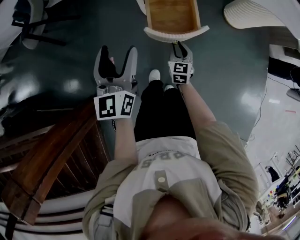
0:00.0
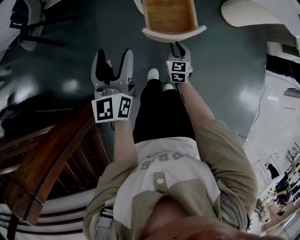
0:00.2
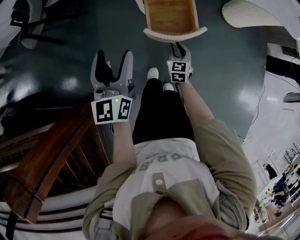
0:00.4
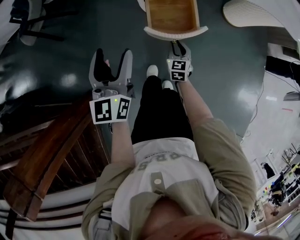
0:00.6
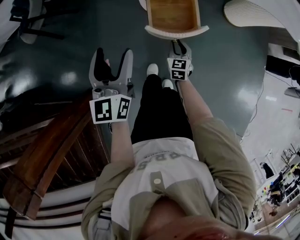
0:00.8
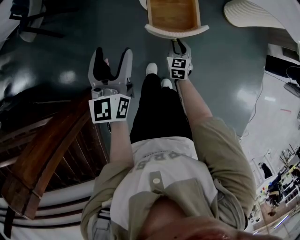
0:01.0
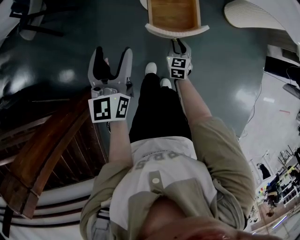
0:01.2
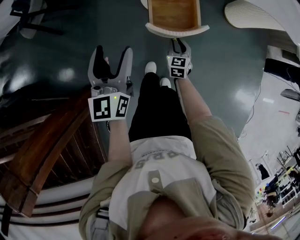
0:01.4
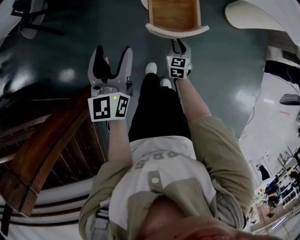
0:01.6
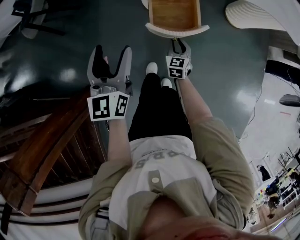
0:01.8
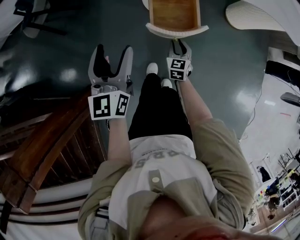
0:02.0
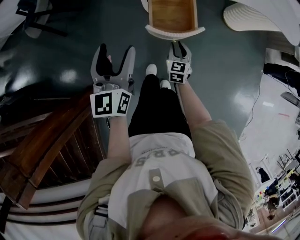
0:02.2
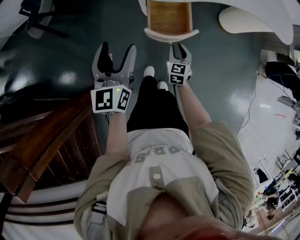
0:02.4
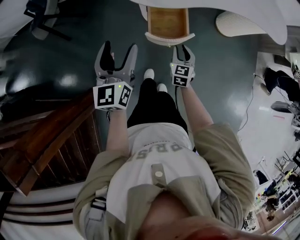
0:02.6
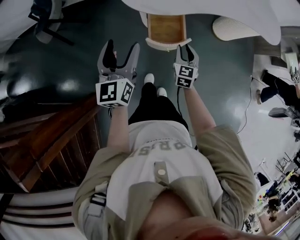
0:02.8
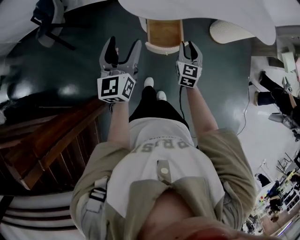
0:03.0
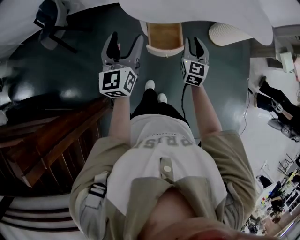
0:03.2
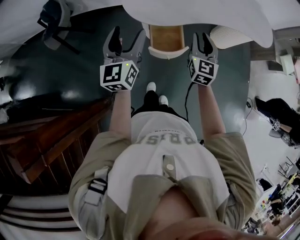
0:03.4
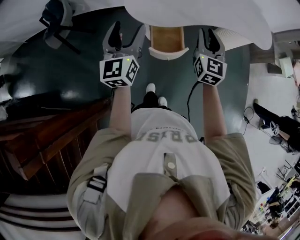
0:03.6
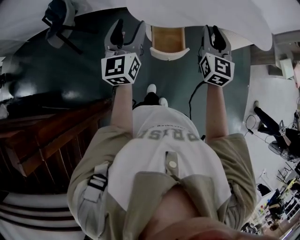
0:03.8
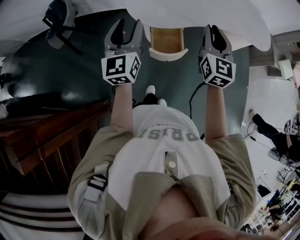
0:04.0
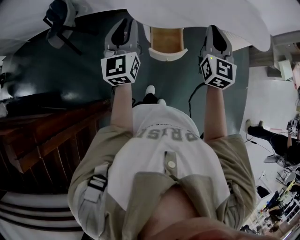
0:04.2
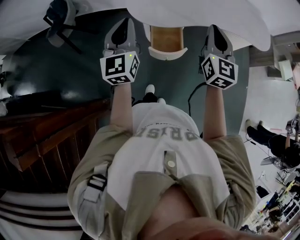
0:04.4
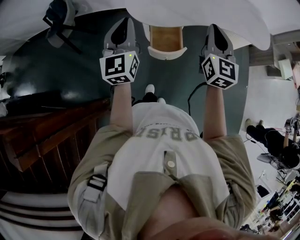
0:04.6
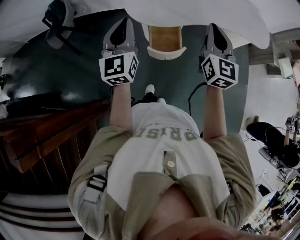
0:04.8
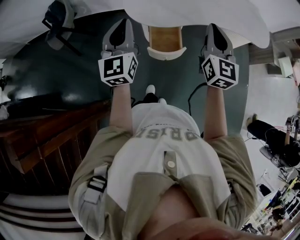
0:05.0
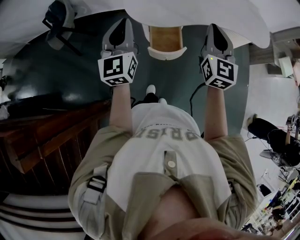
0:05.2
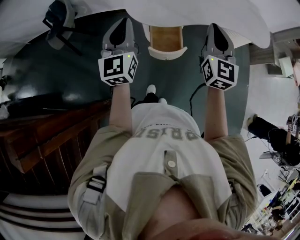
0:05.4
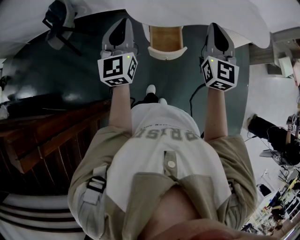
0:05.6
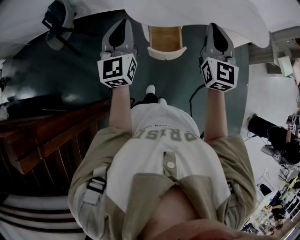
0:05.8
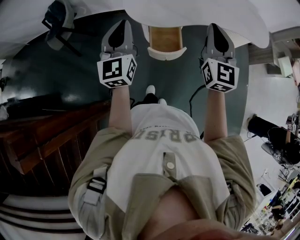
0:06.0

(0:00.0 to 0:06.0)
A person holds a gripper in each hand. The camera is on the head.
0:00.0 - 0:01.6: The grippers make only small movements.
0:01.6 - 0:03.0: The left gripper is displaced upward by some 15 cm, while the right gripper travels upward by about 30 cm.
0:03.0 - 0:04.4: The left gripper goes some 10 cm upward, and closes its fingers. Meanwhile the right gripper goes roughly 25 cm upward.
0:04.4 - 0:06.0: The grippers stay close to where they were, moving slightly.

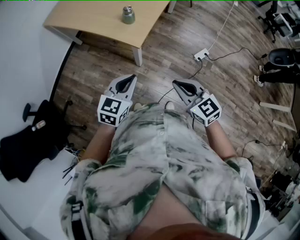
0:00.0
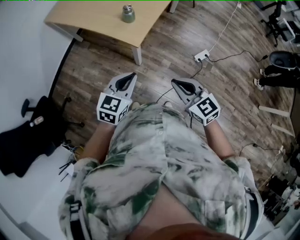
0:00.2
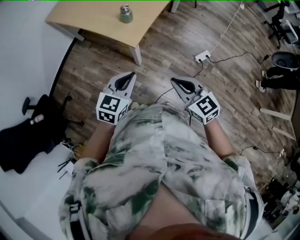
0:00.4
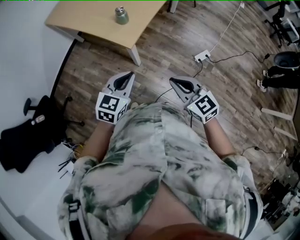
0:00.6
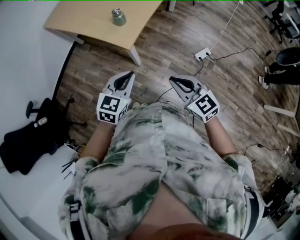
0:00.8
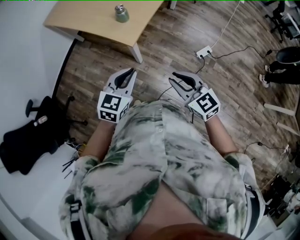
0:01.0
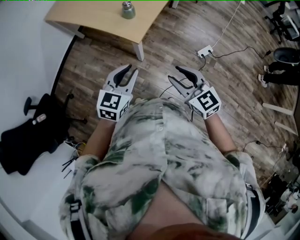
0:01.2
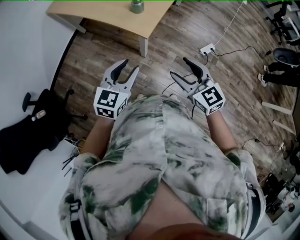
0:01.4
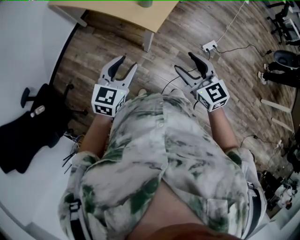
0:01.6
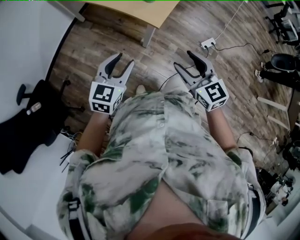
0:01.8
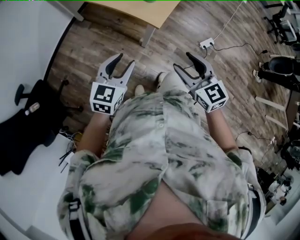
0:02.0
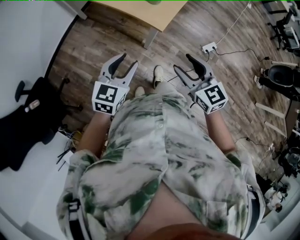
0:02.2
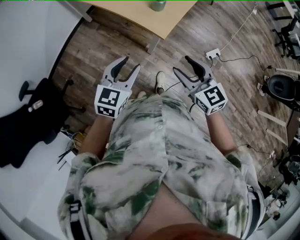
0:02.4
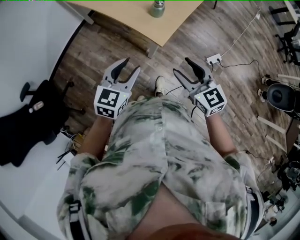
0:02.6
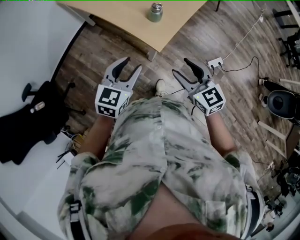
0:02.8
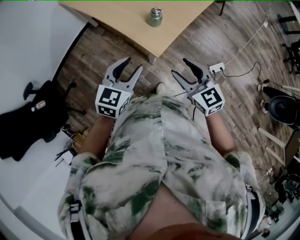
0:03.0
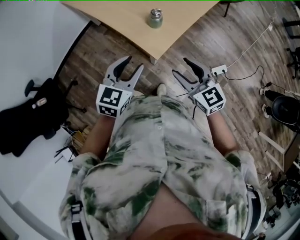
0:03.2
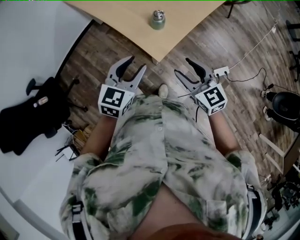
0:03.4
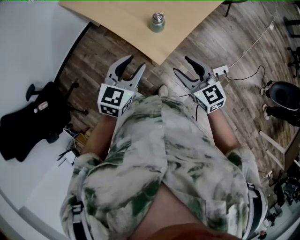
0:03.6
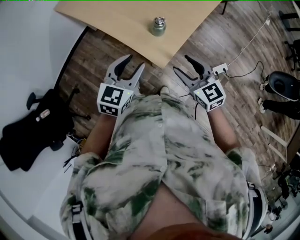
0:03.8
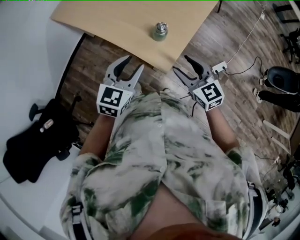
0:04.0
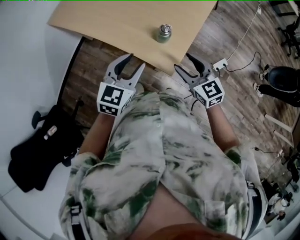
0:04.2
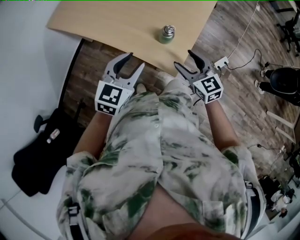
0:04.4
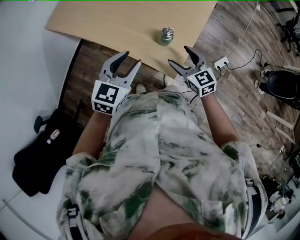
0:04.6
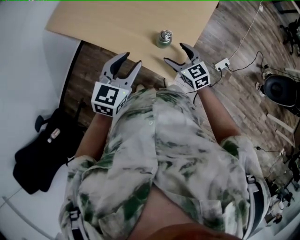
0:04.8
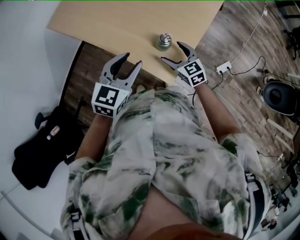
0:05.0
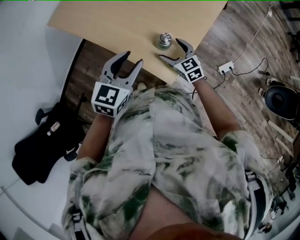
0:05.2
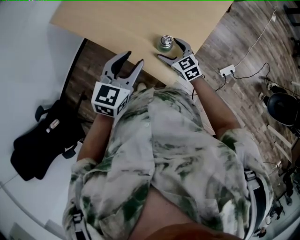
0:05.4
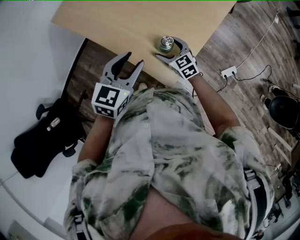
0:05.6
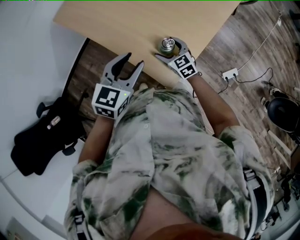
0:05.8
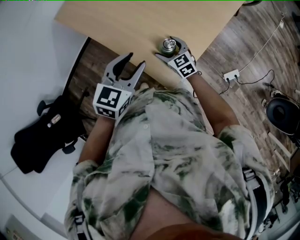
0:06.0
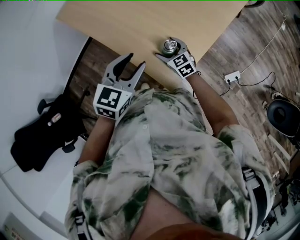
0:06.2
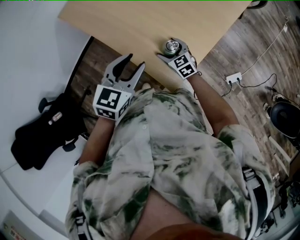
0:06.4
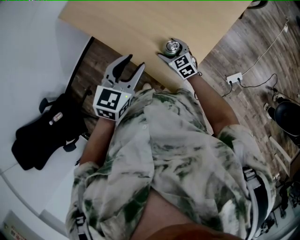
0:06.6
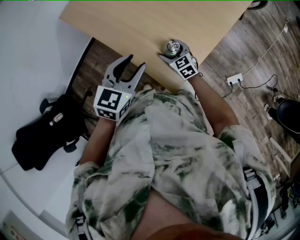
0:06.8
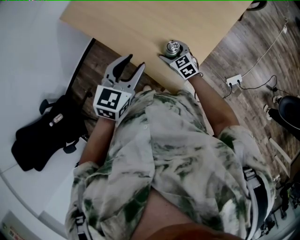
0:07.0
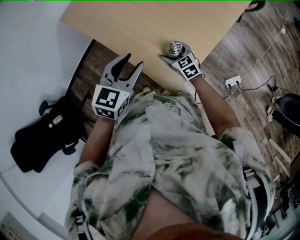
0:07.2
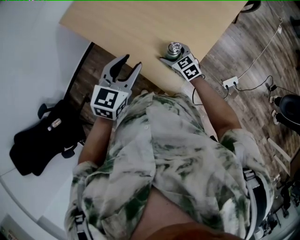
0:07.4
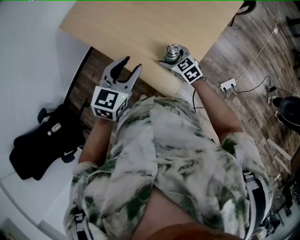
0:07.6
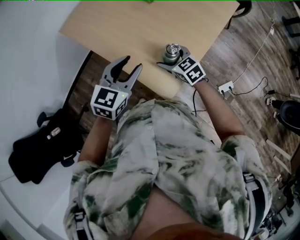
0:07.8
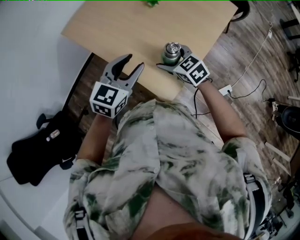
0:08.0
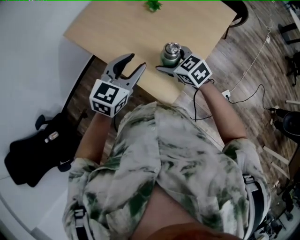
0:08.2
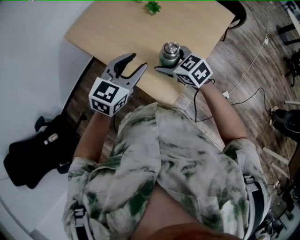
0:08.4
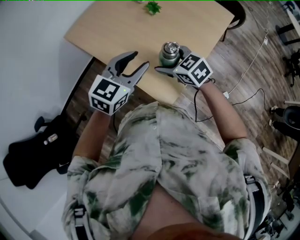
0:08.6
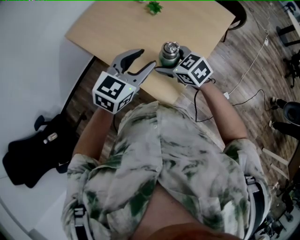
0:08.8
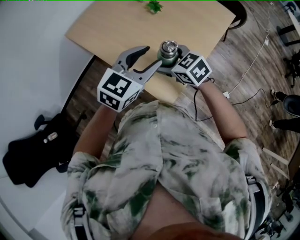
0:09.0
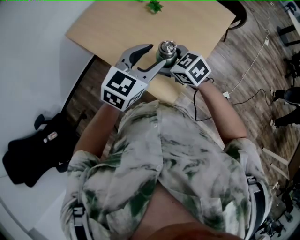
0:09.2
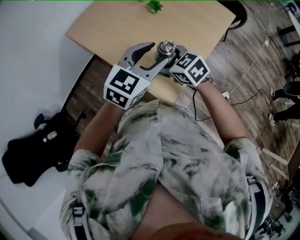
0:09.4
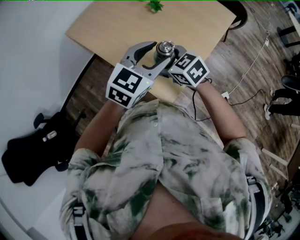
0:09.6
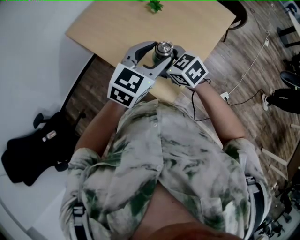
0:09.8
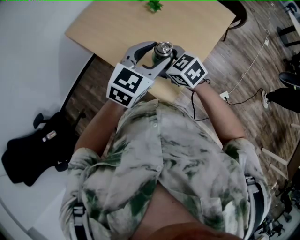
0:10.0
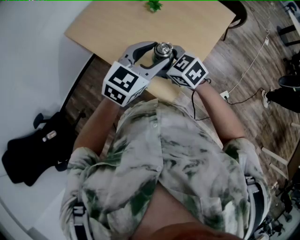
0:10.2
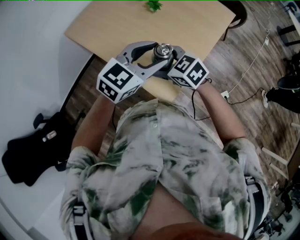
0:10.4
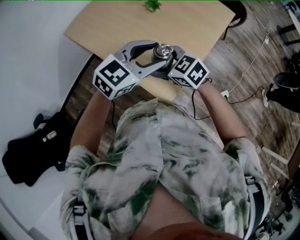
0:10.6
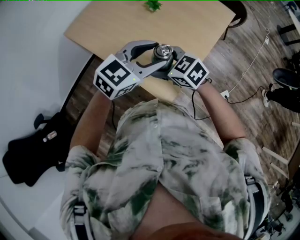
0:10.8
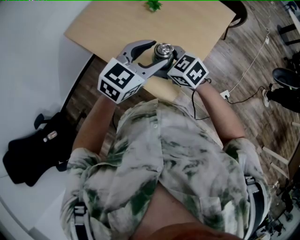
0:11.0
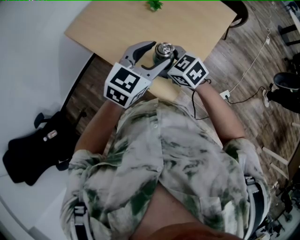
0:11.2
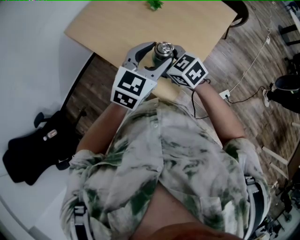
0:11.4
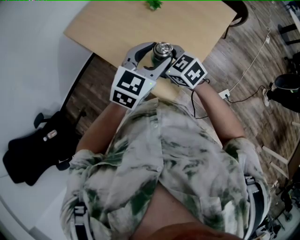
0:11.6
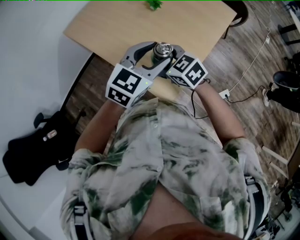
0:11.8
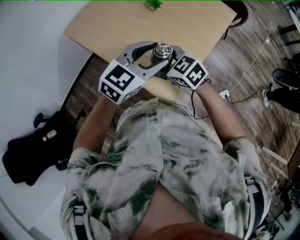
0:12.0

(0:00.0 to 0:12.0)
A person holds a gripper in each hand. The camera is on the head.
0:00.0 - 0:01.6: The right gripper is displaced to the left by roughly 5 cm, and opens its fingers. The left gripper heads to the left, covering some 10 cm, and opens.
0:01.6 - 0:03.0: The left gripper is displaced forward and to the right by about 15 cm, while the right gripper moves forward, about 15 cm.
0:03.0 - 0:04.4: The left gripper moves forward and to the left, about 20 cm; the right gripper goes roughly 15 cm forward.
0:04.4 - 0:06.0: The right gripper heads downward and forward, covering roughly 20 cm, while the left gripper is displaced forward by roughly 5 cm.
0:06.0 - 0:07.6: The right gripper moves upward, some 5 cm.
0:07.6 - 0:09.0: The right gripper goes about 15 cm upward. Meanwhile the left gripper is displaced upward by some 10 cm.
0:09.0 - 0:12.0: There are only small adjustments of the grippers.

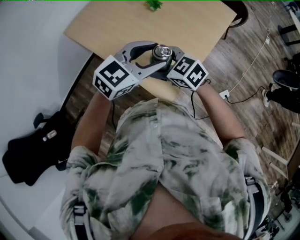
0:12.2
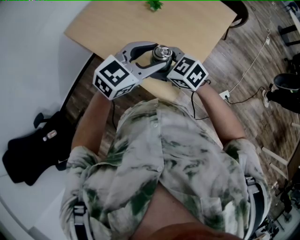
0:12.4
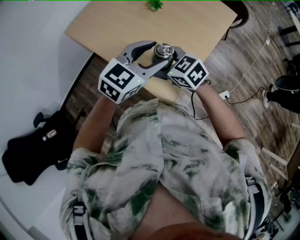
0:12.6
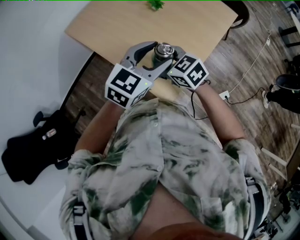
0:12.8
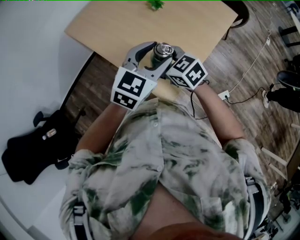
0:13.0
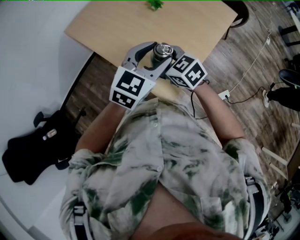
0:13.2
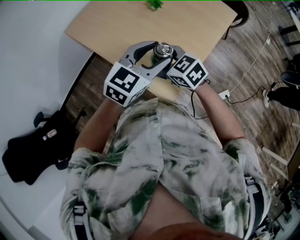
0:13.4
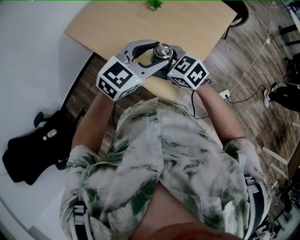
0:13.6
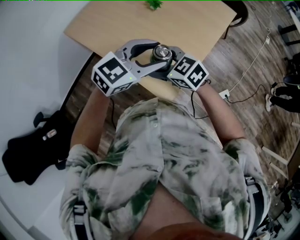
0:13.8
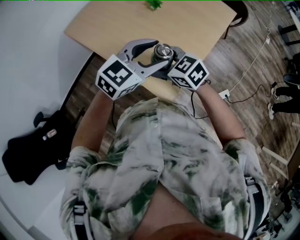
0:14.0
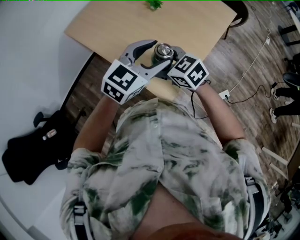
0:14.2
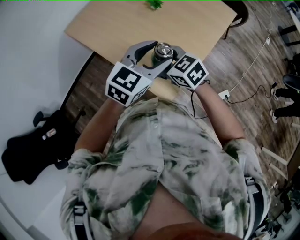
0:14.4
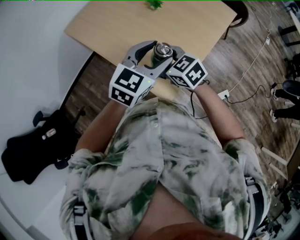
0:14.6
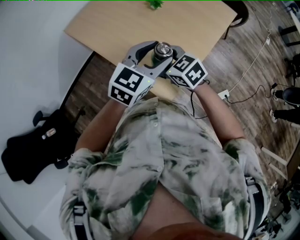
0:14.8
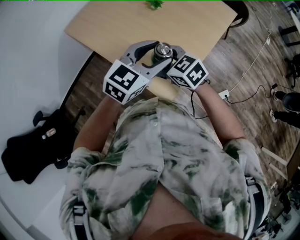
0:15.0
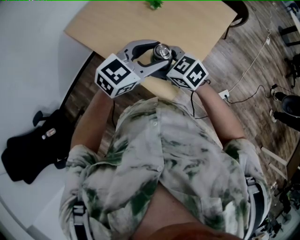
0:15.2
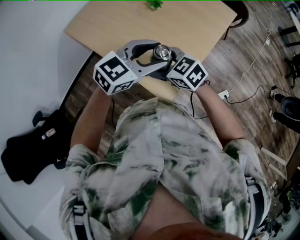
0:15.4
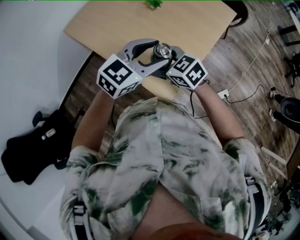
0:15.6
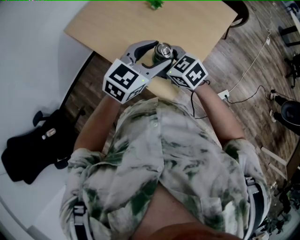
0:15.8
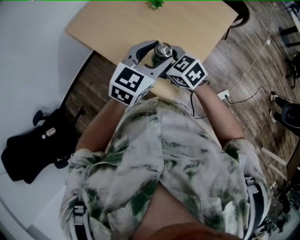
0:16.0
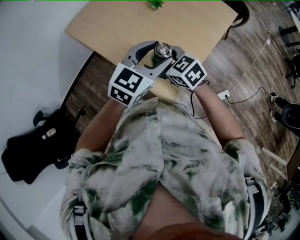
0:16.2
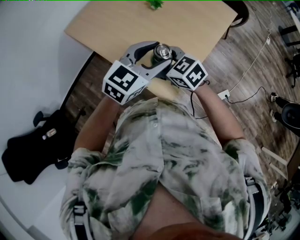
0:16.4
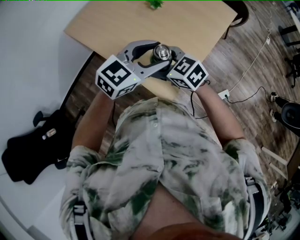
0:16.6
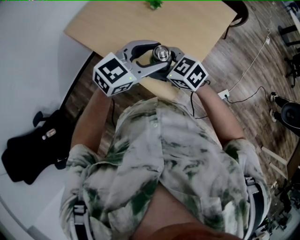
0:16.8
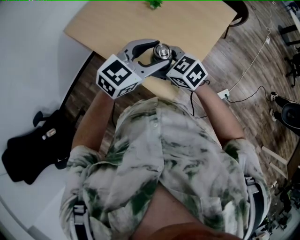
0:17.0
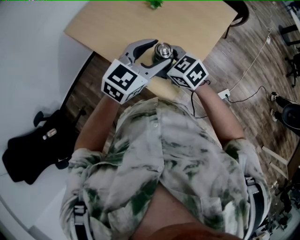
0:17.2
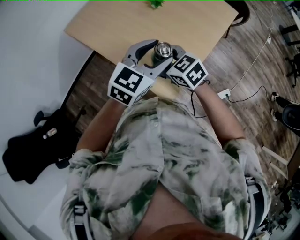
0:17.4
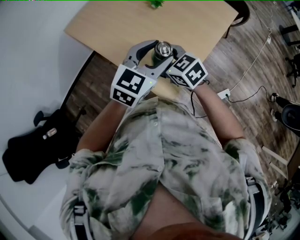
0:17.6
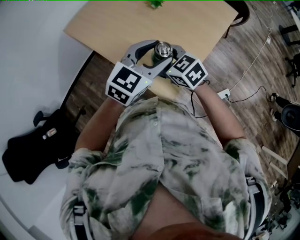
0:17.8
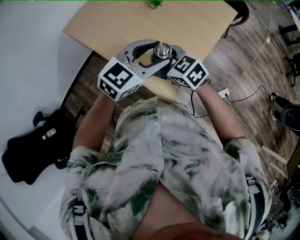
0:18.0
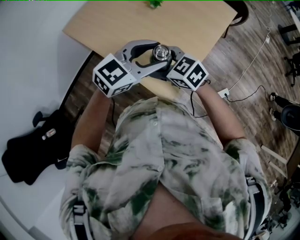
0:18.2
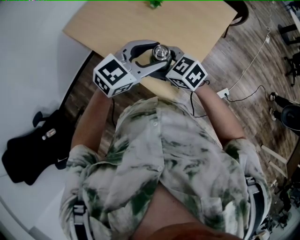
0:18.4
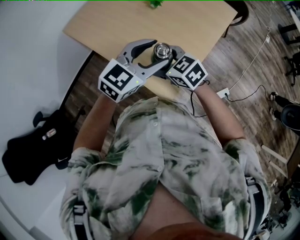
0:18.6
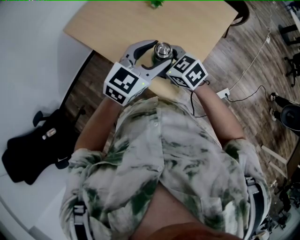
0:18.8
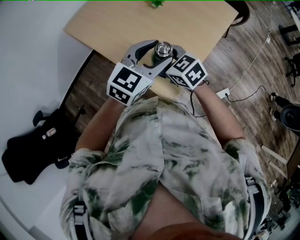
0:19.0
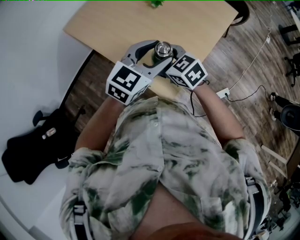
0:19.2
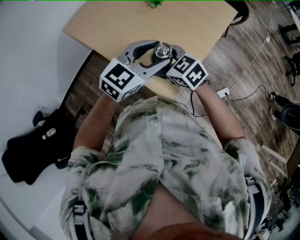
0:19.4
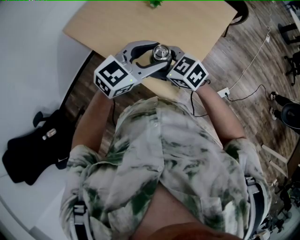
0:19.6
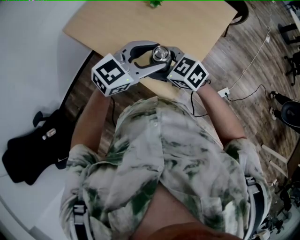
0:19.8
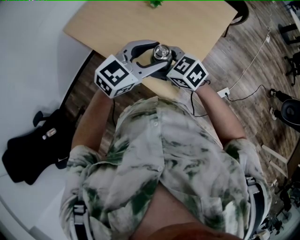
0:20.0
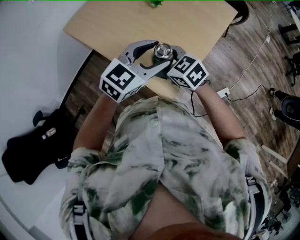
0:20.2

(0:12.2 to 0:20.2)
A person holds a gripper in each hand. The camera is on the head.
0:17.0 - 0:20.2: The grippers stay close to where they were, moving slightly.
